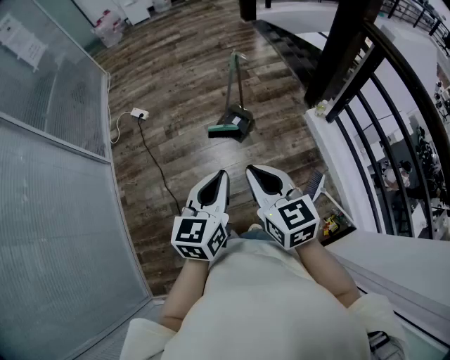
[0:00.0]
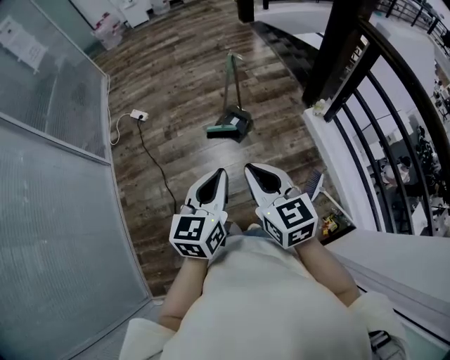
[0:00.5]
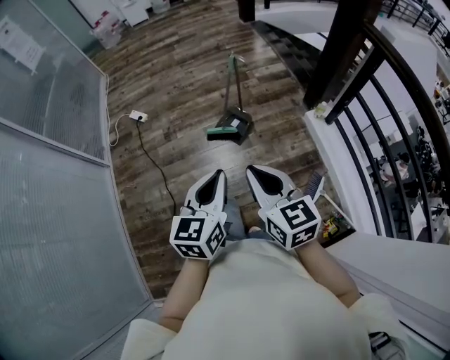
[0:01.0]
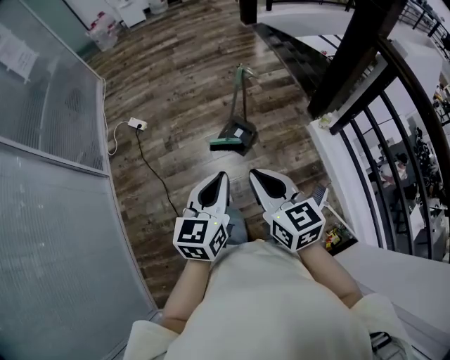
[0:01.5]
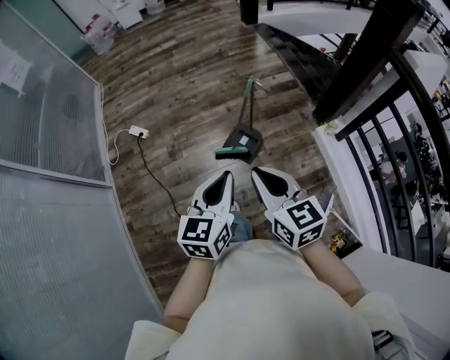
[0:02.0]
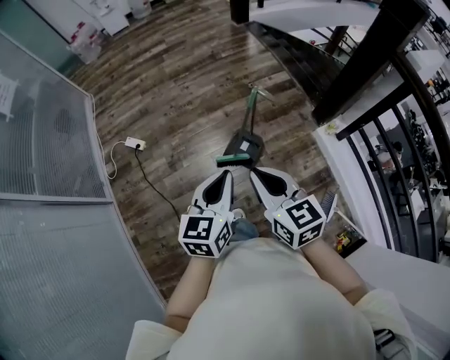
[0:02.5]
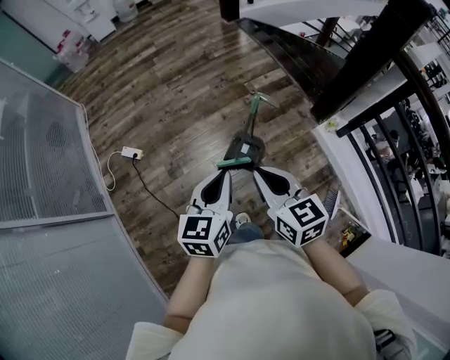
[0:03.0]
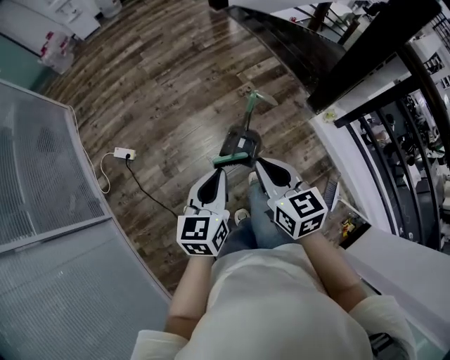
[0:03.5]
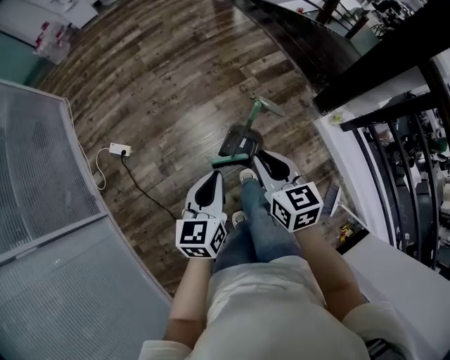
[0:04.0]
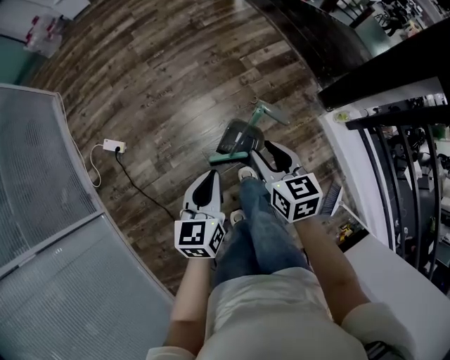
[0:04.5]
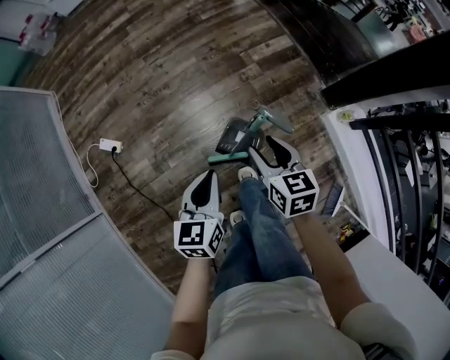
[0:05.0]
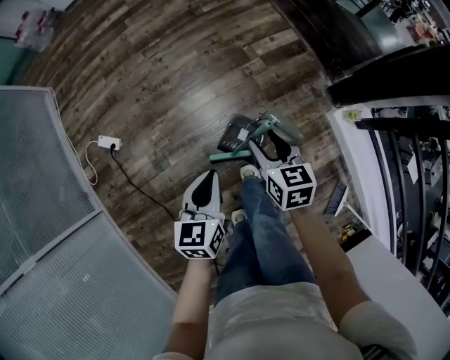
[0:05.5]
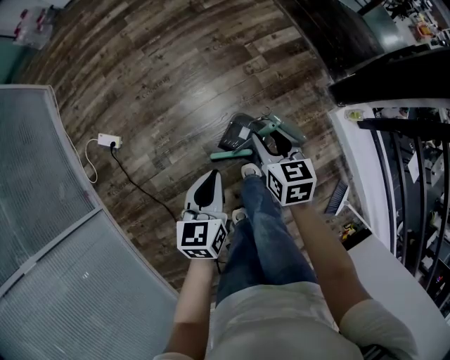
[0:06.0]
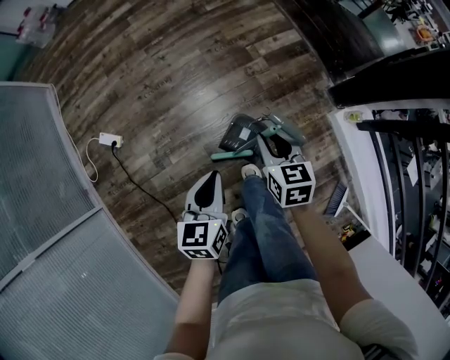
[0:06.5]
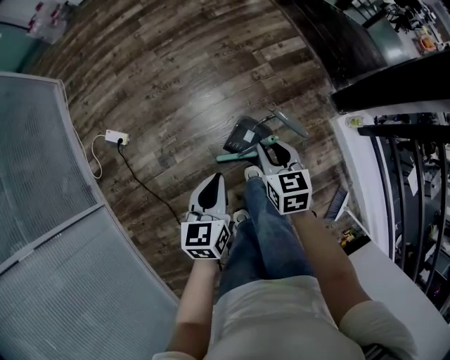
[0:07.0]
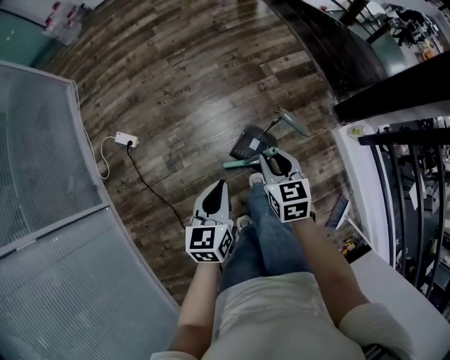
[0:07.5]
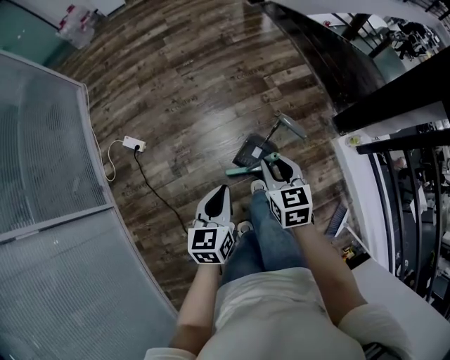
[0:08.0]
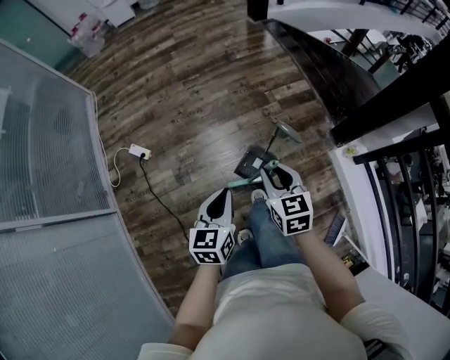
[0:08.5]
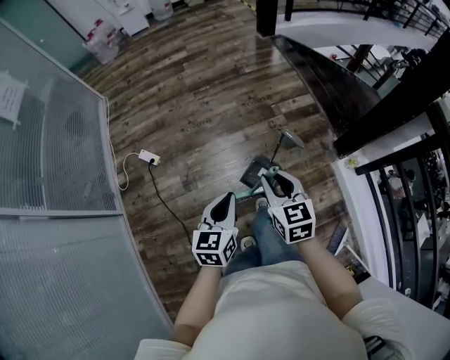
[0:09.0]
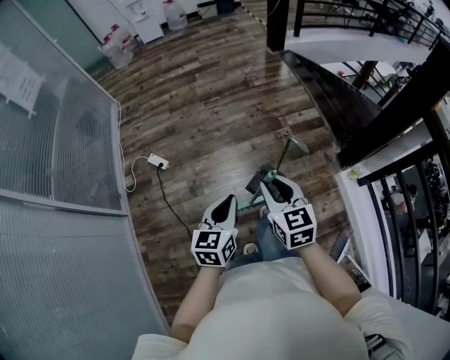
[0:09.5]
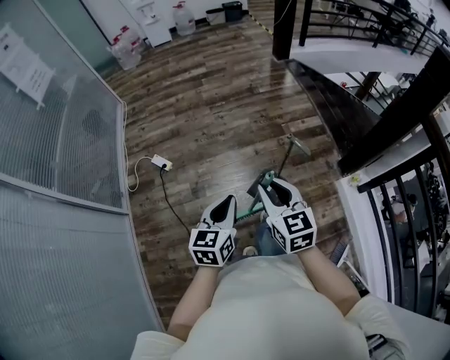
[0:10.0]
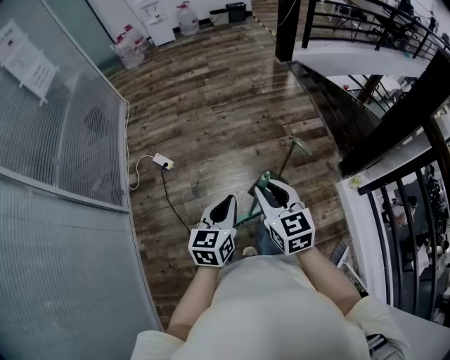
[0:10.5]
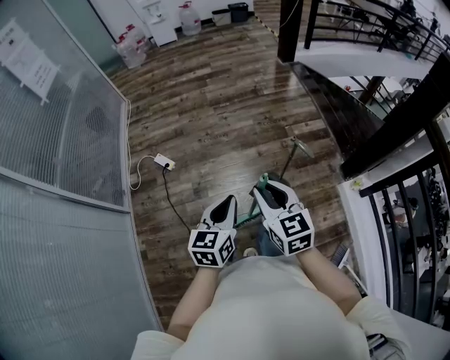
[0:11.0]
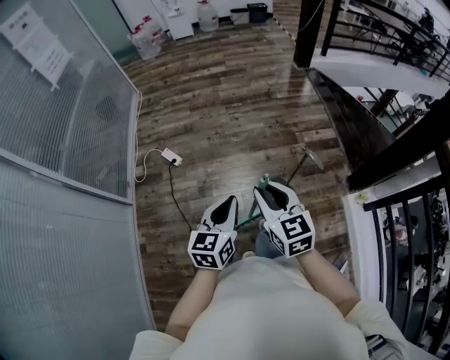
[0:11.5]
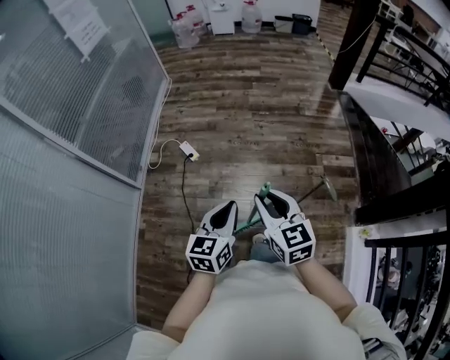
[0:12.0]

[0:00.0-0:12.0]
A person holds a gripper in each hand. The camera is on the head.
0:00.0 to 0:02.0: Both grippers move forward, about 20 cm.
0:02.0 to 0:04.0: The grippers both shift forward and downward by approximately 30 cm.
0:04.0 to 0:06.0: Both grippers travel together downward and forward, some 20 cm. The right gripper opens its fingers.
0:06.0 to 0:08.0: The right gripper moves upward and backward, some 15 cm, while the left gripper travels backward and upward by roughly 15 cm.
0:08.0 to 0:10.0: The right gripper moves upward, backward and to the left, approximately 25 cm; the left gripper moves upward and backward, roughly 15 cm.
0:10.0 to 0:12.0: The two grippers go approximately 10 cm to the left and forward. The right gripper rotates some 20 degrees.

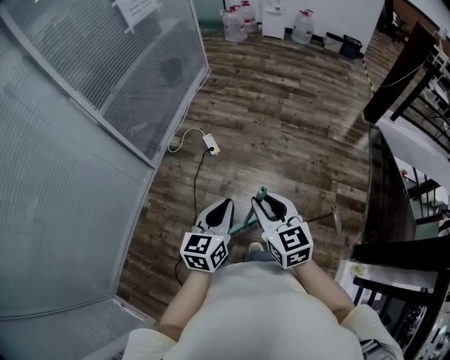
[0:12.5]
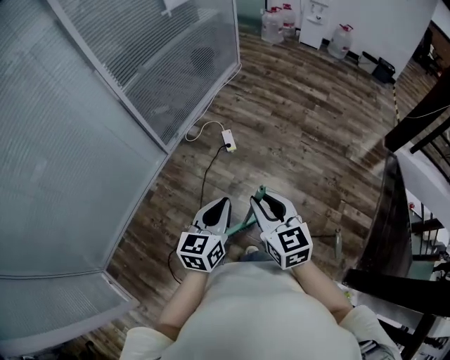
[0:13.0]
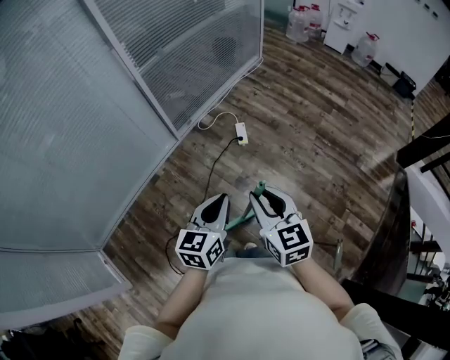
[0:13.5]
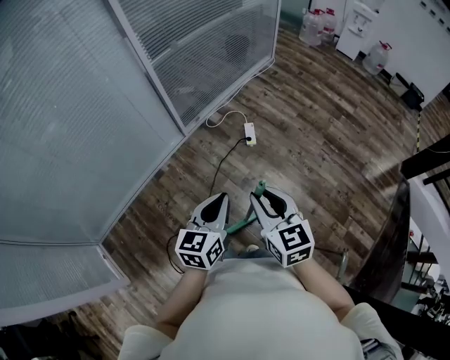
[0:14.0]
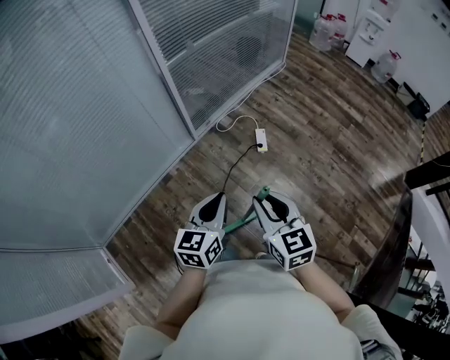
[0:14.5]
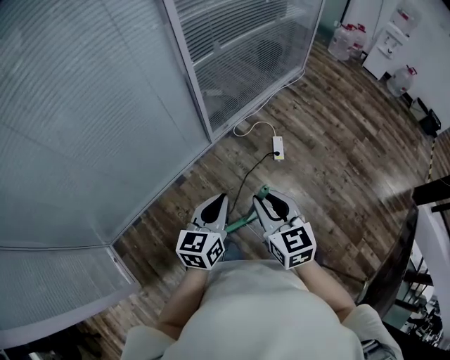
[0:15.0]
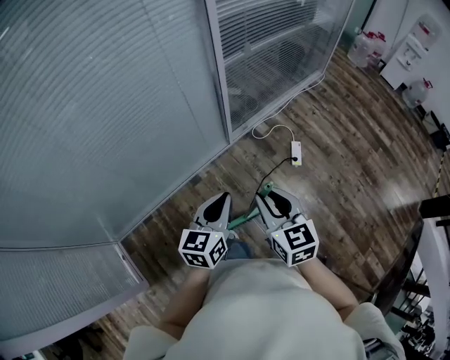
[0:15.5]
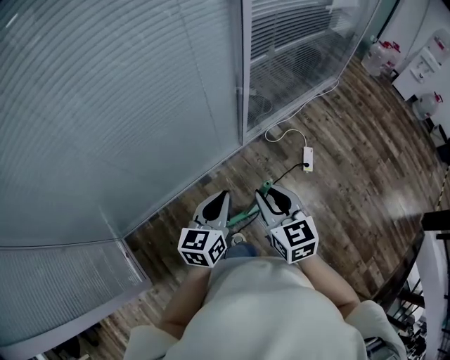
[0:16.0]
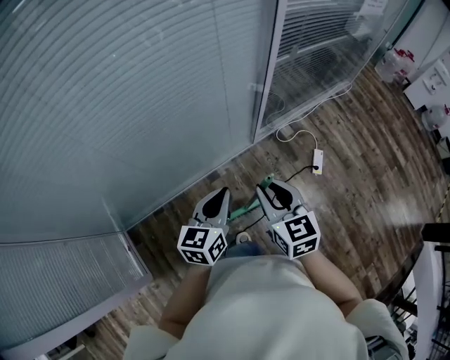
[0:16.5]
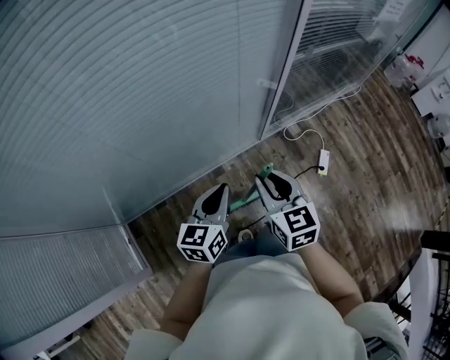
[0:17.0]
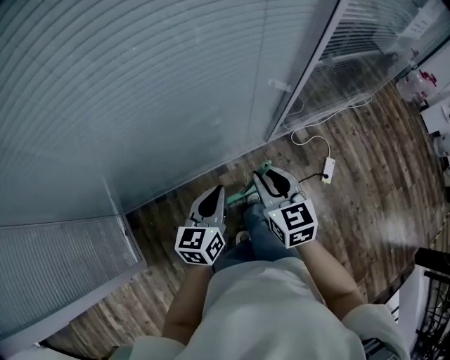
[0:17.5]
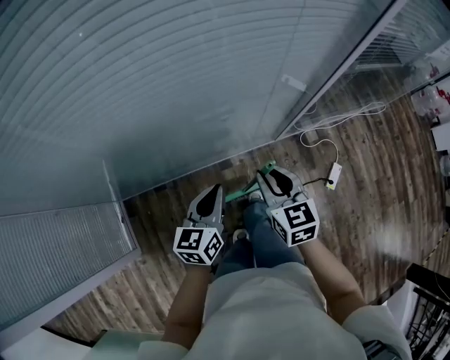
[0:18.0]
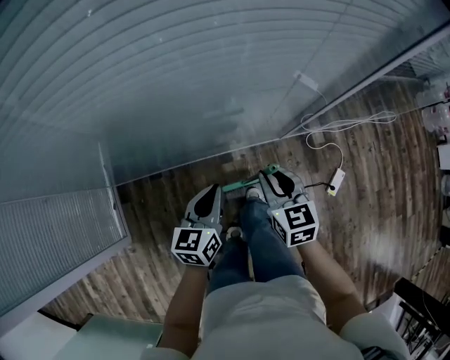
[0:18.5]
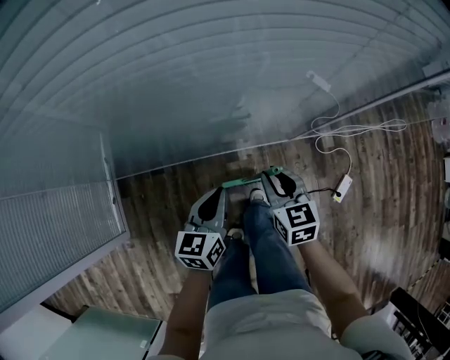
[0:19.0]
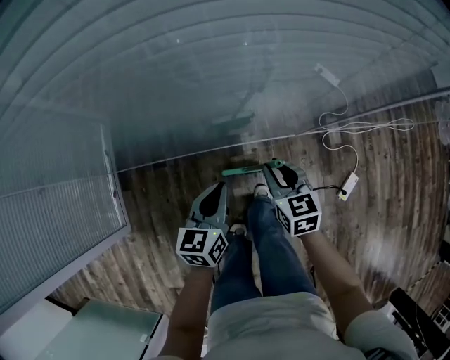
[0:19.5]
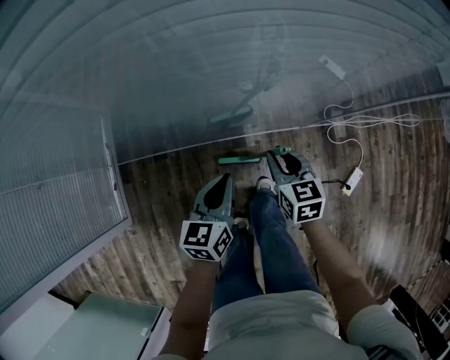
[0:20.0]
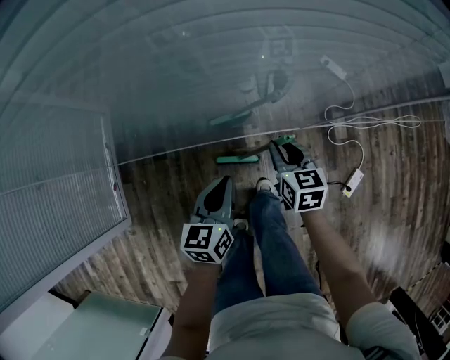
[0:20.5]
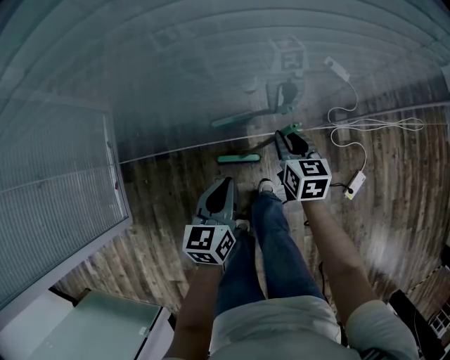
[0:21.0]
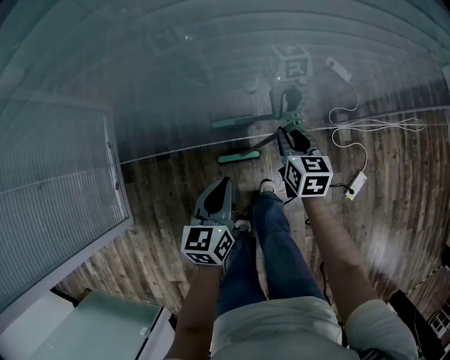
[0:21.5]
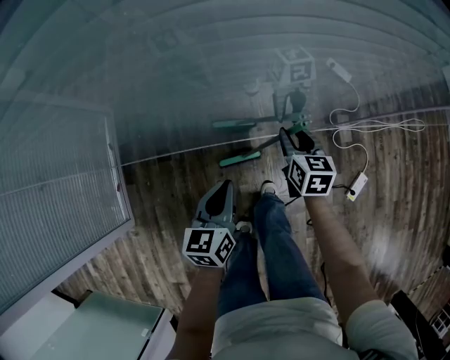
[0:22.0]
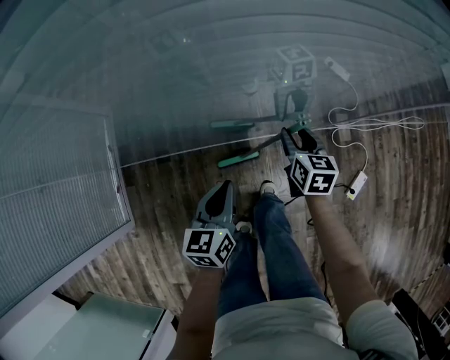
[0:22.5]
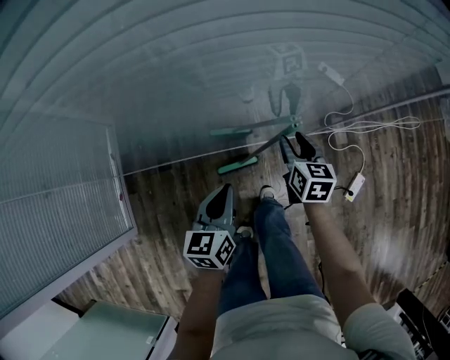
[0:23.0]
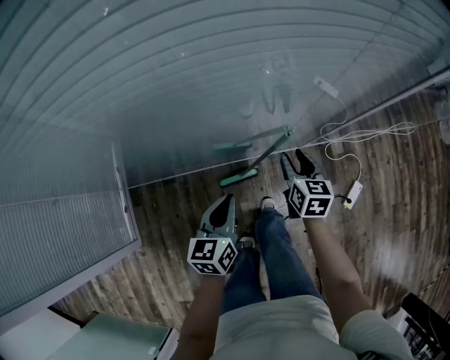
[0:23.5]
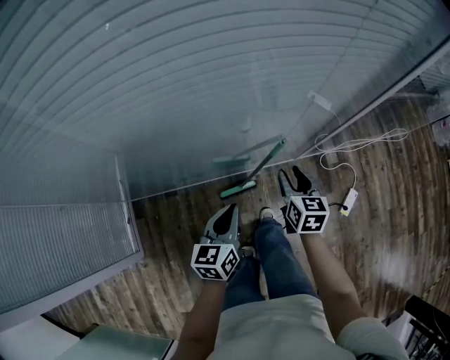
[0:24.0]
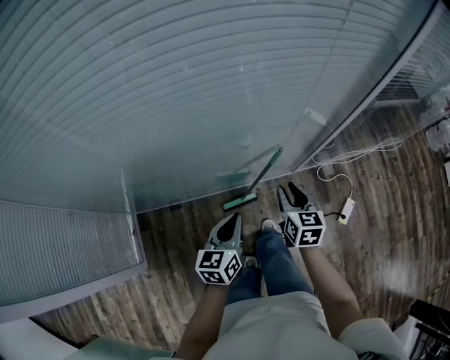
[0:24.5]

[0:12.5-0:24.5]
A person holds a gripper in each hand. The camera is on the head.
0:12.5 to 0:14.5: Both grippers move to the left and forward, some 20 cm. The left gripper turns by approximately 30 degrees, while the right gripper changes its angle by about 20 degrees.
0:14.5 to 0:16.5: Both grippers move to the left and forward, about 40 cm.
0:16.5 to 0:18.5: The right gripper heads forward, downward and to the left, covering some 20 cm. The left gripper heads downward, forward and to the left, covering some 20 cm, and rotates some 20 degrees.
0:18.5 to 0:20.5: The left gripper shifts approximately 10 cm downward, while the right gripper heads downward and forward, covering roughly 20 cm.
0:20.5 to 0:22.5: The right gripper moves approximately 5 cm.
0:22.5 to 0:24.5: The left gripper is displaced upward and backward by approximately 15 cm; the right gripper heads upward and backward, covering some 20 cm.

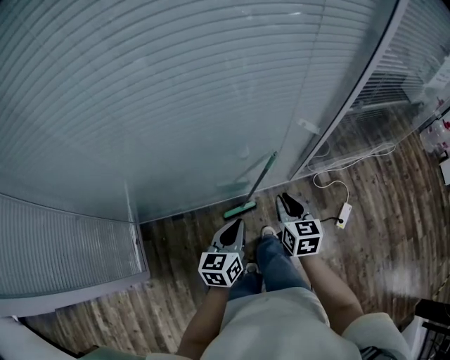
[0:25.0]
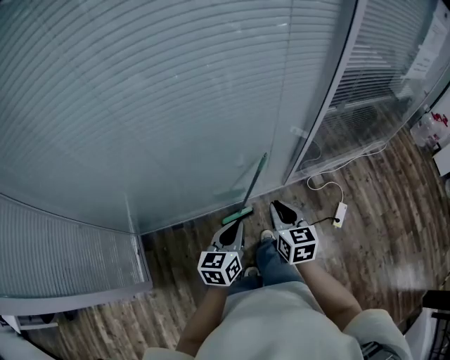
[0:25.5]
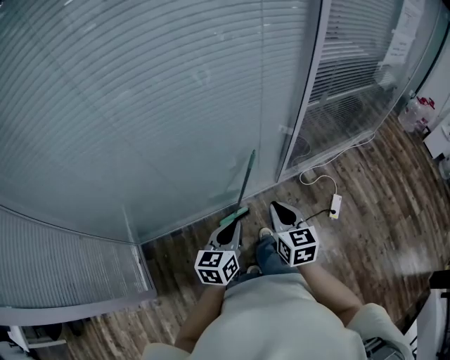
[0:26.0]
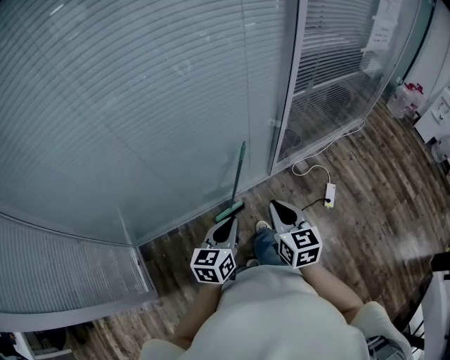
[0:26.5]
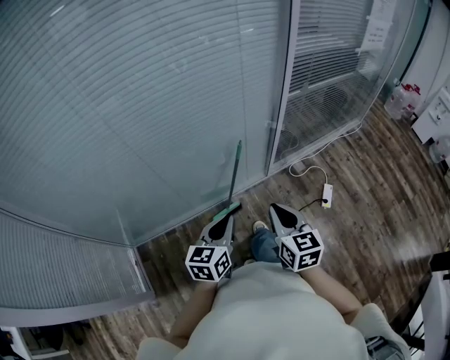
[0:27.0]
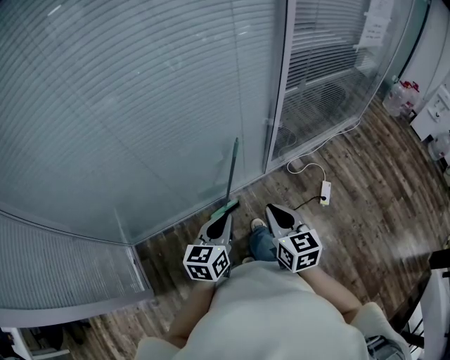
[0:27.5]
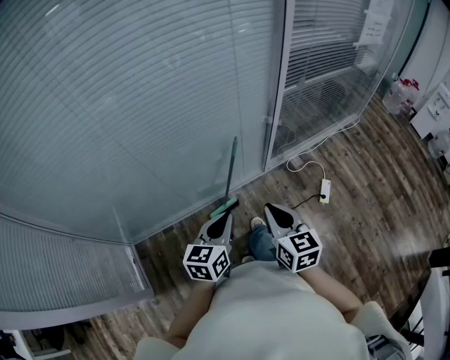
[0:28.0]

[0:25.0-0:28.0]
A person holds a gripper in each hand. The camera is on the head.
0:25.0 to 0:26.5: The left gripper moves backward and upward, about 10 cm. Meanwhile the right gripper moves backward and upward, roughly 15 cm.
0:26.5 to 0:28.0: The grippers stay close to where they were, moving slightly.
